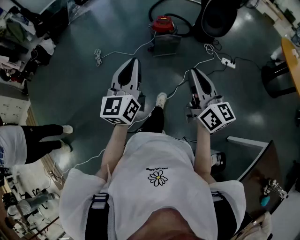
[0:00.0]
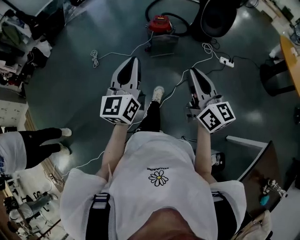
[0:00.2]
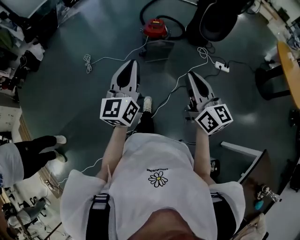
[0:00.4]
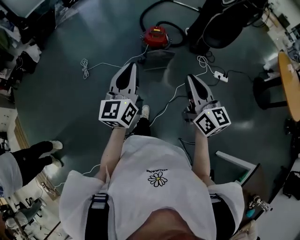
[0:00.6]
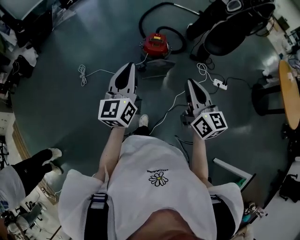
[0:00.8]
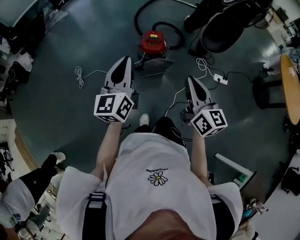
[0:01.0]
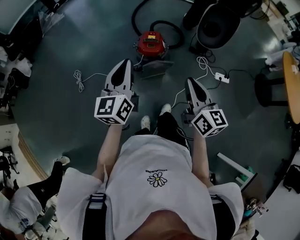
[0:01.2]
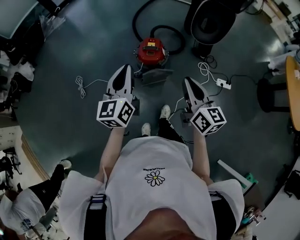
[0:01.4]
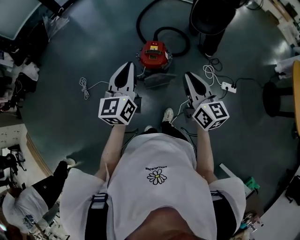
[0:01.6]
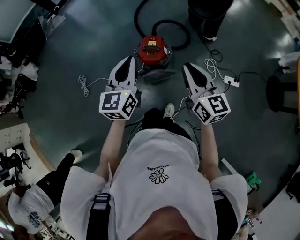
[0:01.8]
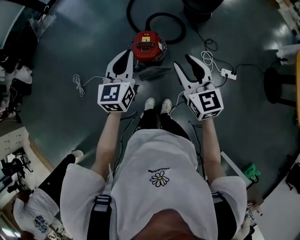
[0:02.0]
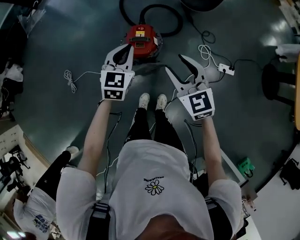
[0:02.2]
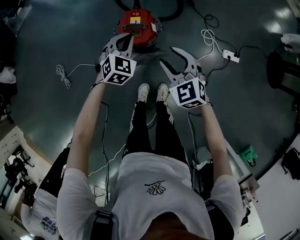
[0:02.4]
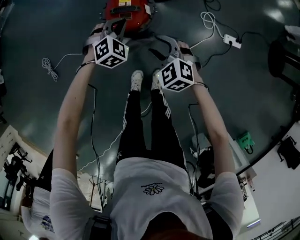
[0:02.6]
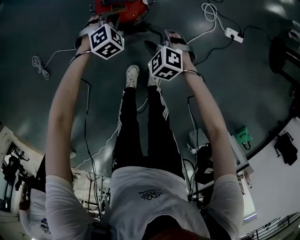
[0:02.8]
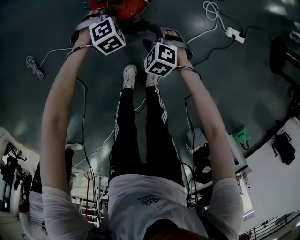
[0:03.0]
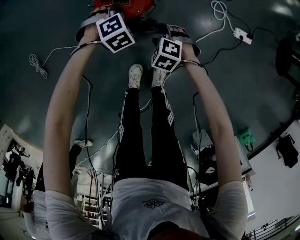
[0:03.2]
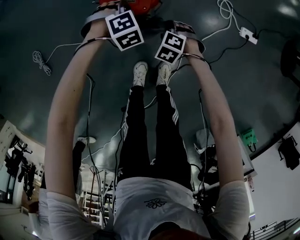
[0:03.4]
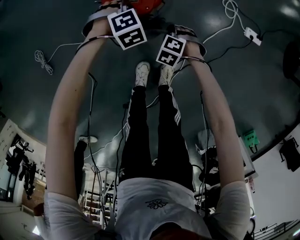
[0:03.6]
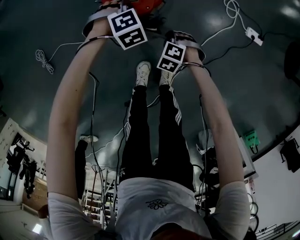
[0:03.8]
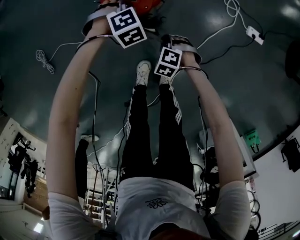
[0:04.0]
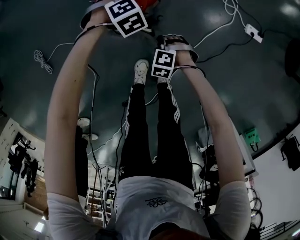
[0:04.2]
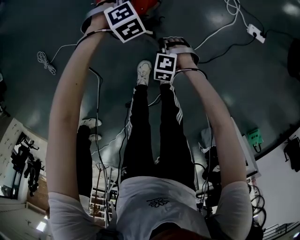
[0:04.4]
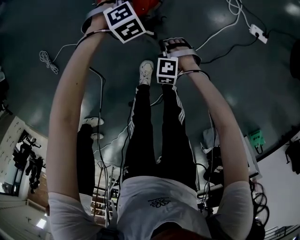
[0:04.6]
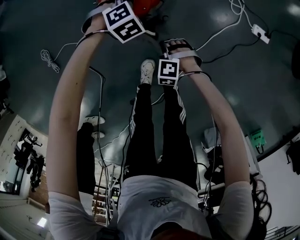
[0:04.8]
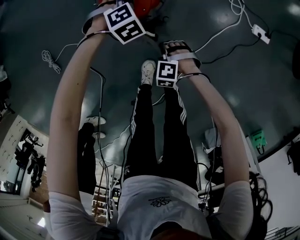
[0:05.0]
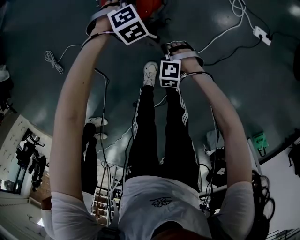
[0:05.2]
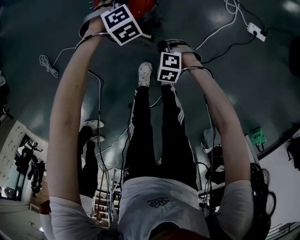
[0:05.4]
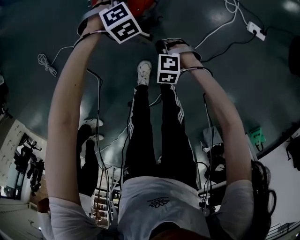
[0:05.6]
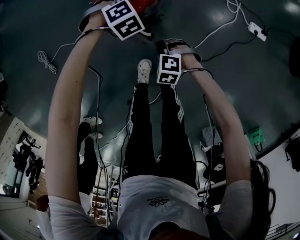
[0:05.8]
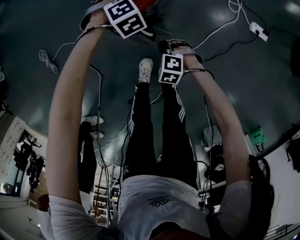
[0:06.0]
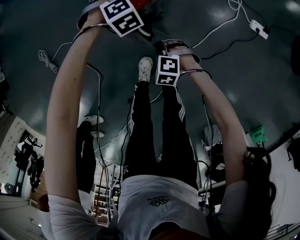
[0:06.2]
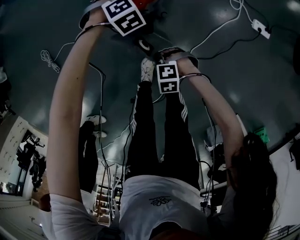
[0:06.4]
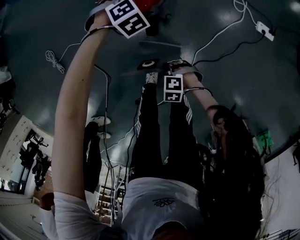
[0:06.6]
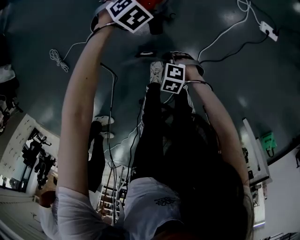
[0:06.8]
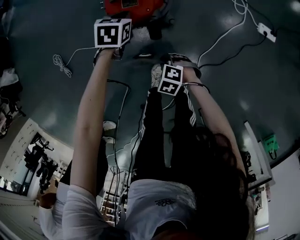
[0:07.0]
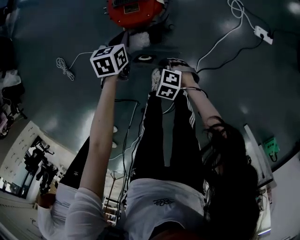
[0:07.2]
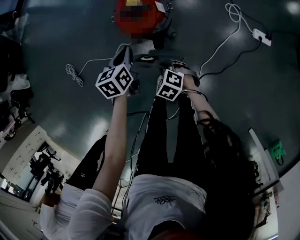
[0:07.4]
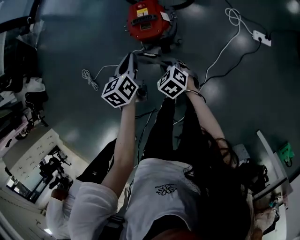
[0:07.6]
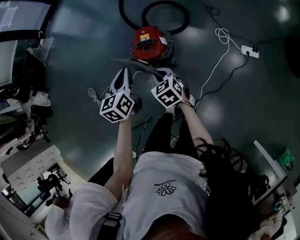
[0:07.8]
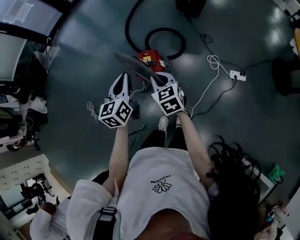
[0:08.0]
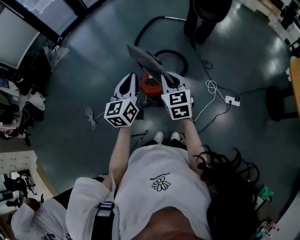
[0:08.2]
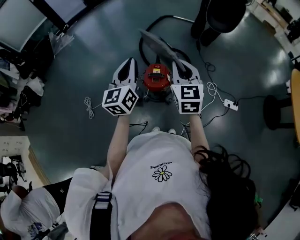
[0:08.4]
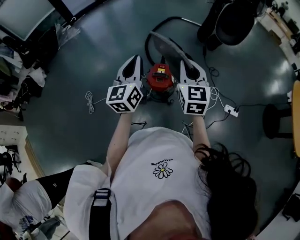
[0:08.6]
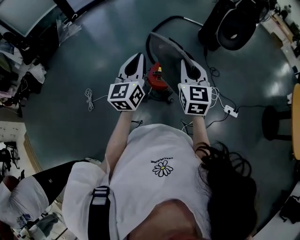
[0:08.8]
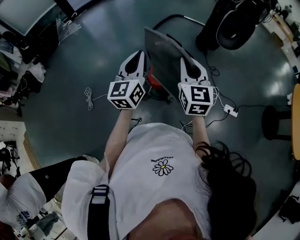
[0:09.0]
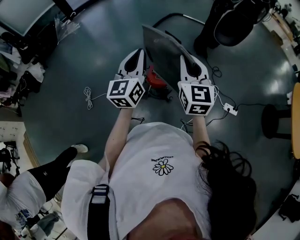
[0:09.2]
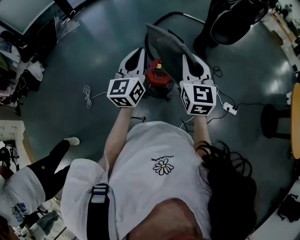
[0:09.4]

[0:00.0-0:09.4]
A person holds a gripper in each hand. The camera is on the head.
0:00.0 to 0:01.6: The two grippers travel together, forward, some 60 cm.
0:01.6 to 0:03.2: Both grippers move downward, some 60 cm. The right gripper angles its fingers downward, by roughly 70 degrees, and opens its fingers. Meanwhile the left gripper points its fingers some 60 degrees further downward.
0:03.2 to 0:04.8: The right gripper changes place by some 10 cm, and closes its fingers.
0:04.8 to 0:06.2: The grippers stay close to where they were, moving slightly.
0:06.2 to 0:07.8: The two grippers go approximately 35 cm upward. The left gripper twists roughly 80 degrees counterclockwise, seen from behind. Meanwhile the right gripper rotates around the line of its fingers by about 50 degrees, clockwise from behind.
0:07.8 to 0:09.4: The two grippers go roughly 35 cm upward. The right gripper angles its fingers upward, by approximately 40 degrees; the left gripper points its fingers about 30 degrees further upward.

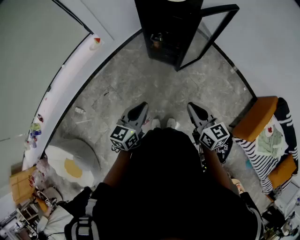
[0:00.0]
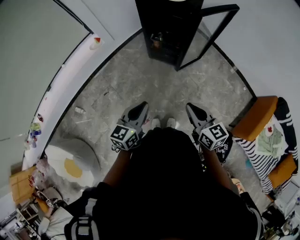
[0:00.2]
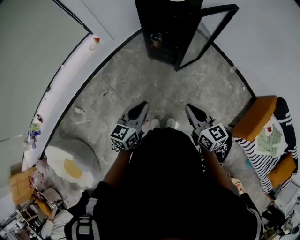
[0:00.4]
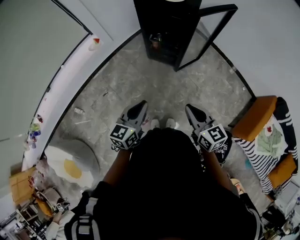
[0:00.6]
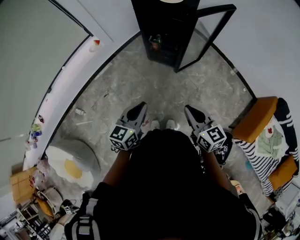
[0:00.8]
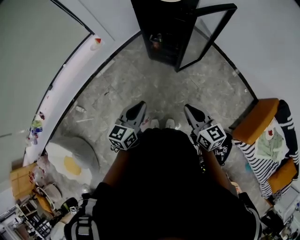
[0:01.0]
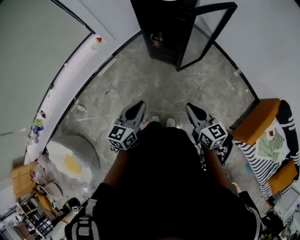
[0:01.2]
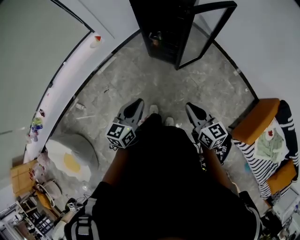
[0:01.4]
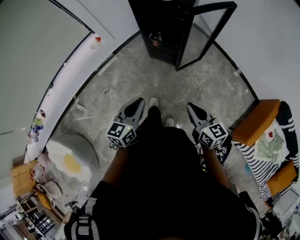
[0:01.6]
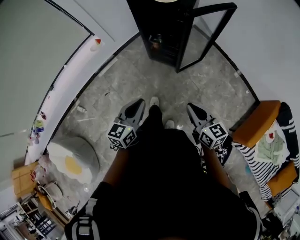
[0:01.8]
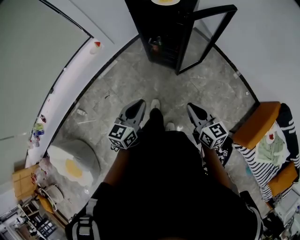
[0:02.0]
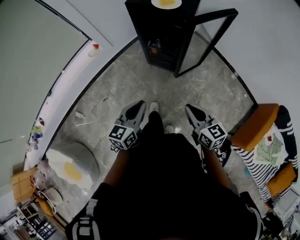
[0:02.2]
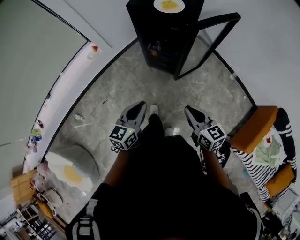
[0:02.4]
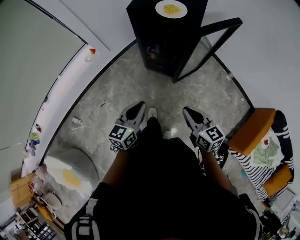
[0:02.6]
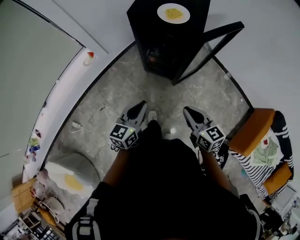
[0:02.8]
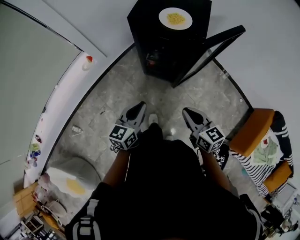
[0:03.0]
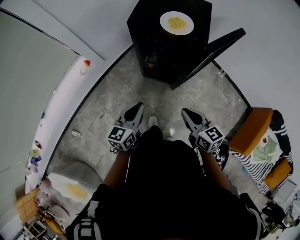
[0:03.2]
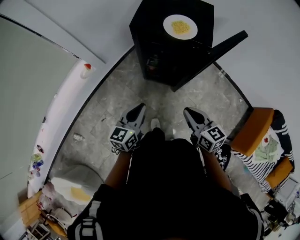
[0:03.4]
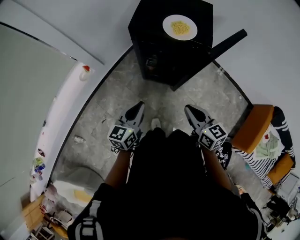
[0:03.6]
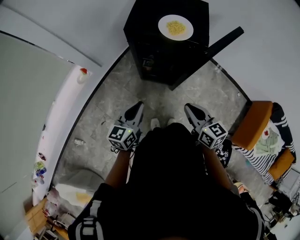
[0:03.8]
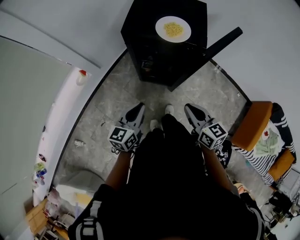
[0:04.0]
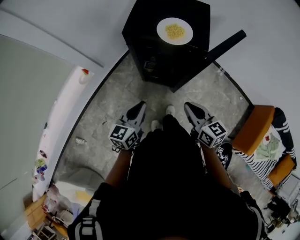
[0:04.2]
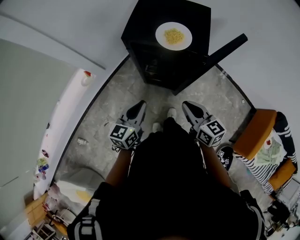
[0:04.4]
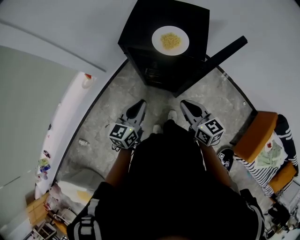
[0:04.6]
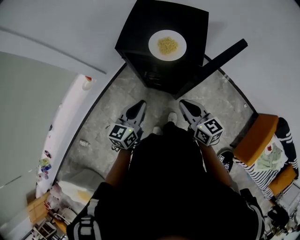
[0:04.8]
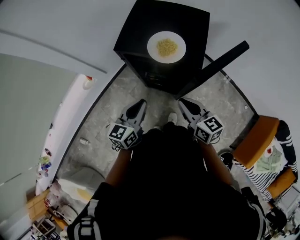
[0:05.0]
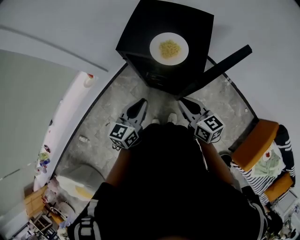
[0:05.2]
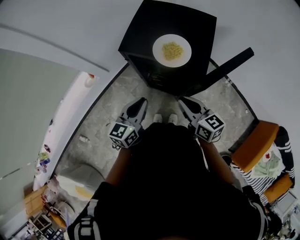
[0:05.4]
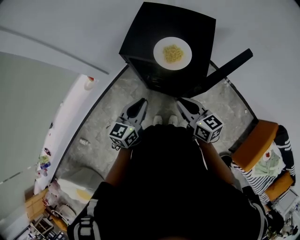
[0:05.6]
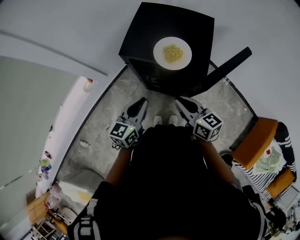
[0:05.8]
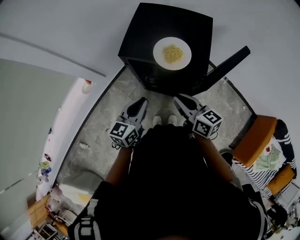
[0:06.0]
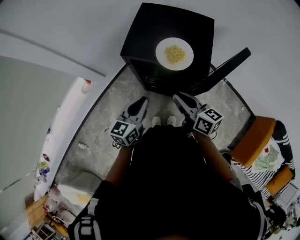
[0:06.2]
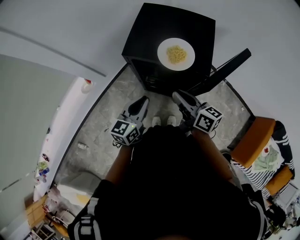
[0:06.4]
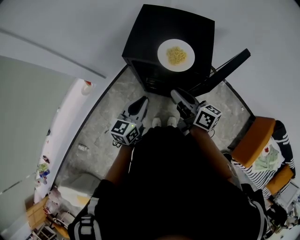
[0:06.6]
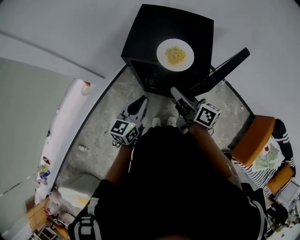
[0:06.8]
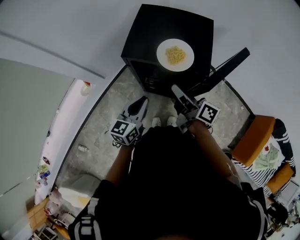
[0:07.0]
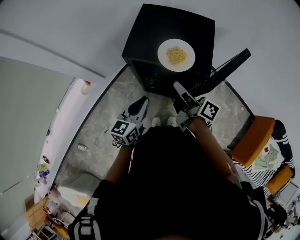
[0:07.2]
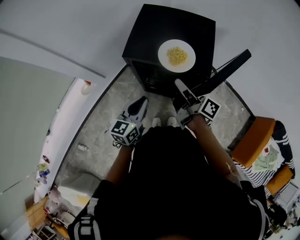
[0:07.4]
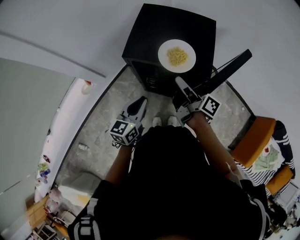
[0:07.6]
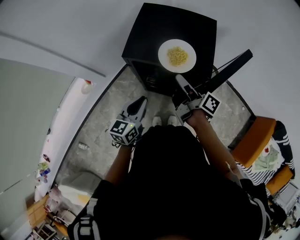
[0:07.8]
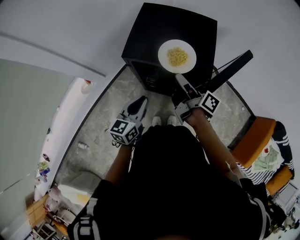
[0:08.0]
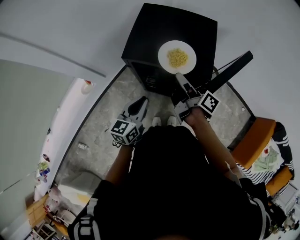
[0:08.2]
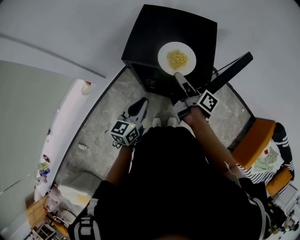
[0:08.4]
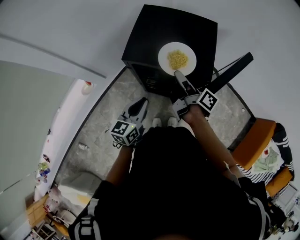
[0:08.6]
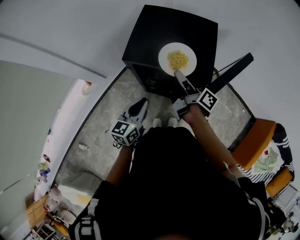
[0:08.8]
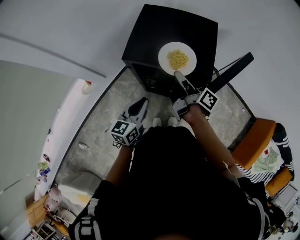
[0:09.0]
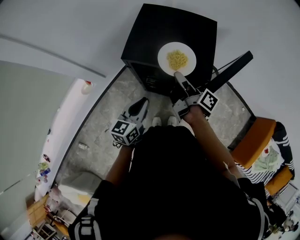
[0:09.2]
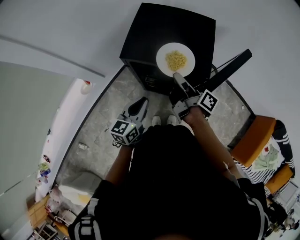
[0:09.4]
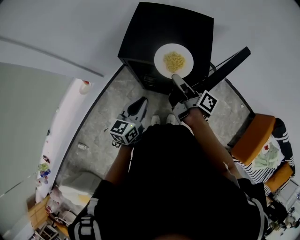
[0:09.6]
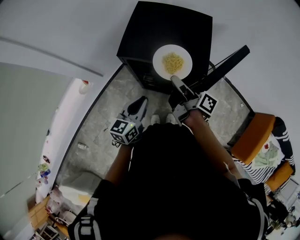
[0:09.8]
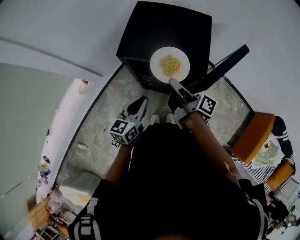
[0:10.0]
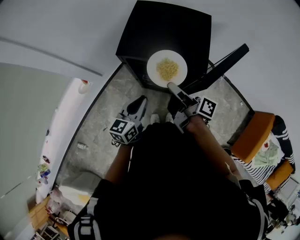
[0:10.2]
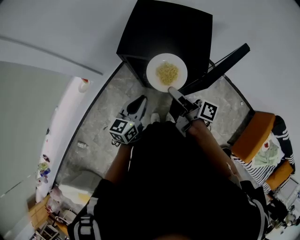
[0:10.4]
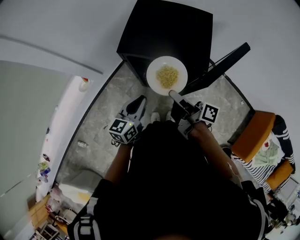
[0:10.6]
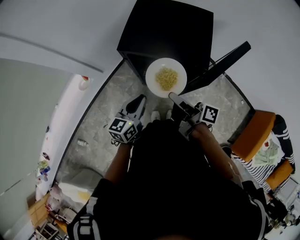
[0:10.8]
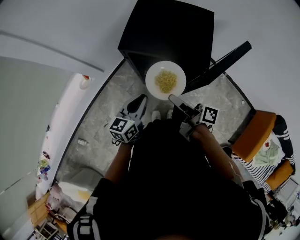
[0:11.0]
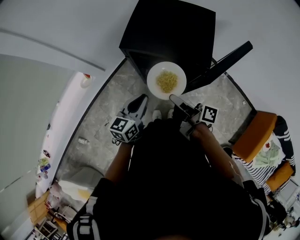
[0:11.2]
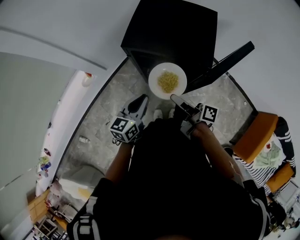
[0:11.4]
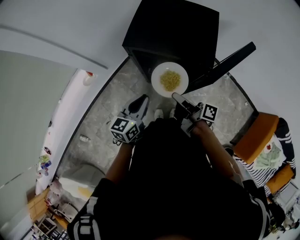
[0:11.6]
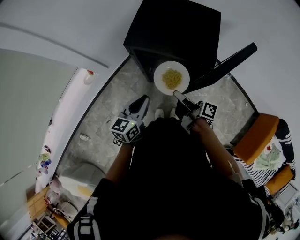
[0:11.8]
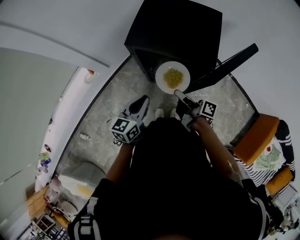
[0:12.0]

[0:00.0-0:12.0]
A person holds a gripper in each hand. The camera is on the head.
0:00.0 to 0:01.6: The right gripper goes about 5 cm to the right.
0:01.6 to 0:03.0: Both grippers travel together forward, roughly 20 cm.
0:03.0 to 0:04.4: The grippers both shift forward by approximately 15 cm.
0:04.4 to 0:06.0: The two grippers go roughly 10 cm forward.
0:06.0 to 0:07.6: The right gripper moves forward, some 10 cm, twists about 50 degrees clockwise, seen from behind, and opens its fingers.
0:07.6 to 0:09.0: The grippers stay close to where they were, moving slightly.
0:09.0 to 0:10.4: The right gripper travels backward by approximately 10 cm.
0:10.4 to 0:12.0: The right gripper goes some 10 cm downward.

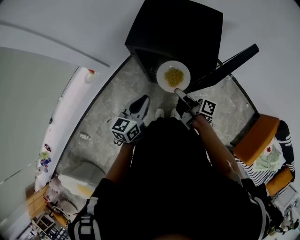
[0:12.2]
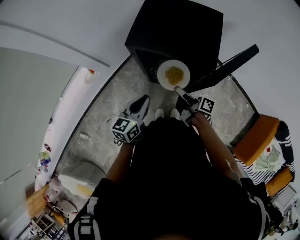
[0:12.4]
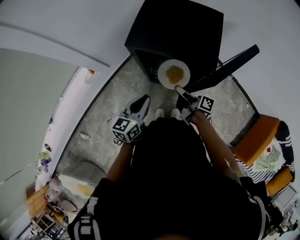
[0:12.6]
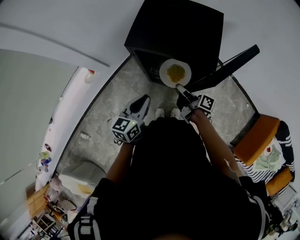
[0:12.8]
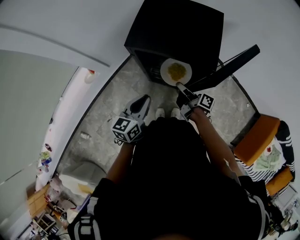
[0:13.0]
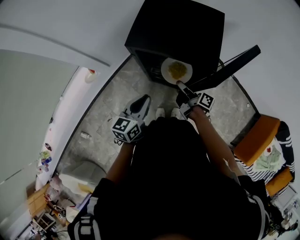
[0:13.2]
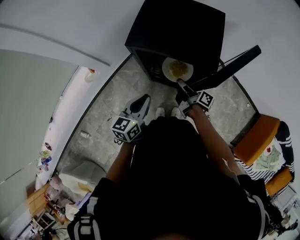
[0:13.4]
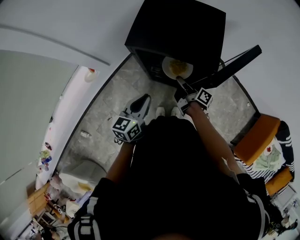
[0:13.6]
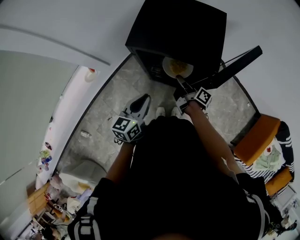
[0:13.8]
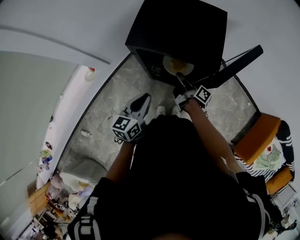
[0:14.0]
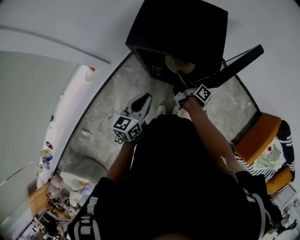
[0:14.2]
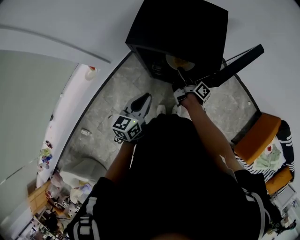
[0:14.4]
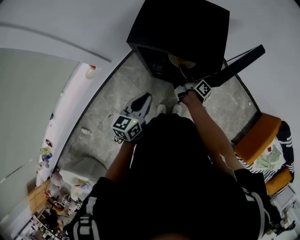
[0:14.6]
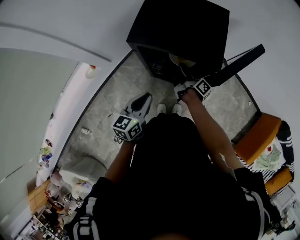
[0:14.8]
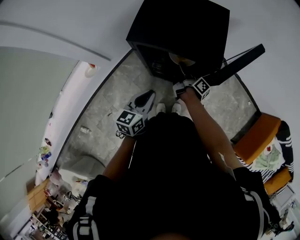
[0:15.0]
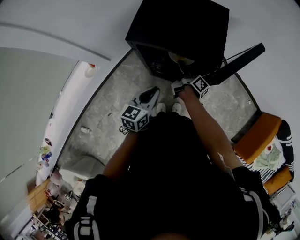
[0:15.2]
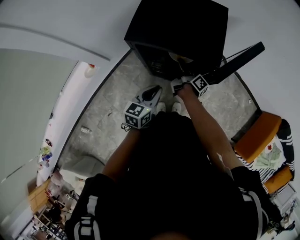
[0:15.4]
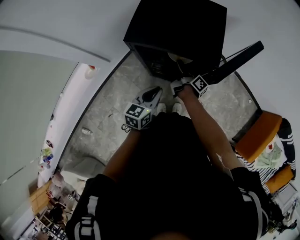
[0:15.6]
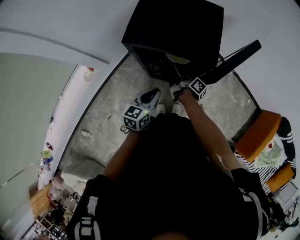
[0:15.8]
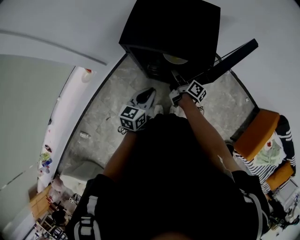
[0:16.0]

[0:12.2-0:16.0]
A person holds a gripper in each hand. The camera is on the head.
0:12.2 to 0:13.4: The right gripper heads forward and downward, covering approximately 10 cm.
0:13.4 to 0:14.8: The right gripper goes approximately 5 cm forward.
0:14.8 to 0:16.0: The left gripper moves roughly 5 cm.
